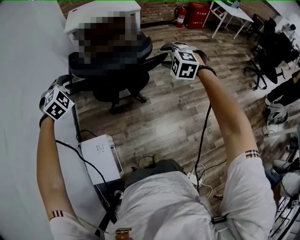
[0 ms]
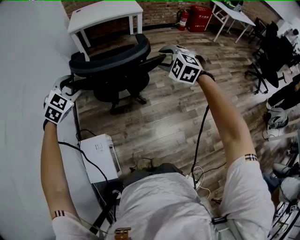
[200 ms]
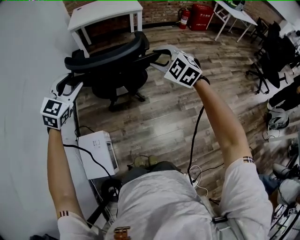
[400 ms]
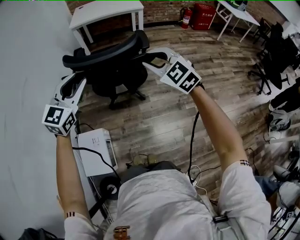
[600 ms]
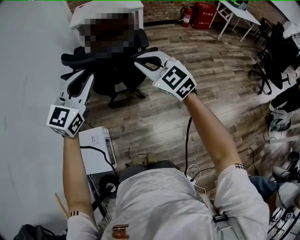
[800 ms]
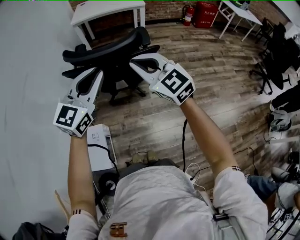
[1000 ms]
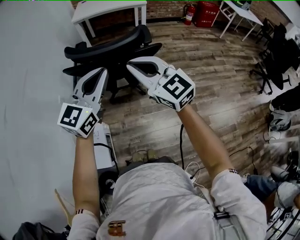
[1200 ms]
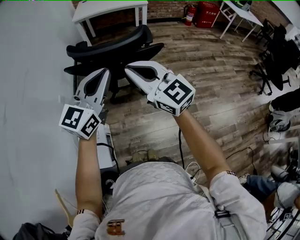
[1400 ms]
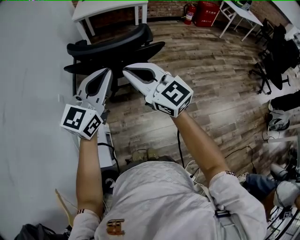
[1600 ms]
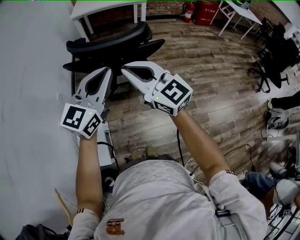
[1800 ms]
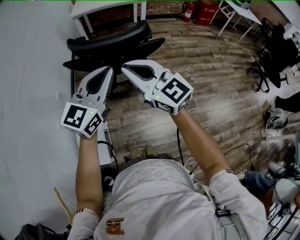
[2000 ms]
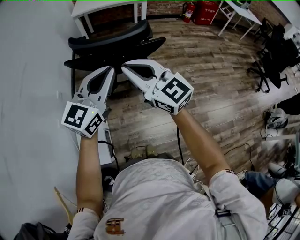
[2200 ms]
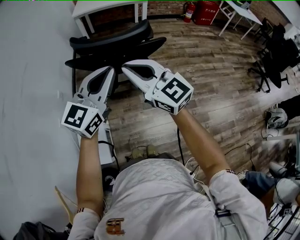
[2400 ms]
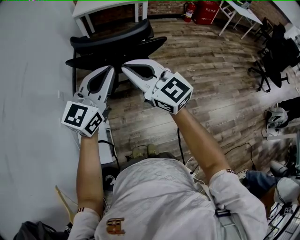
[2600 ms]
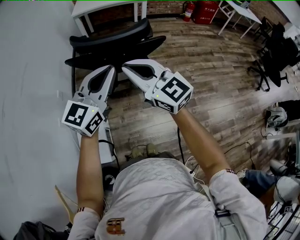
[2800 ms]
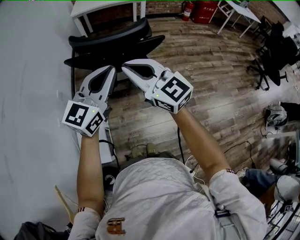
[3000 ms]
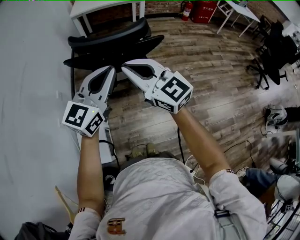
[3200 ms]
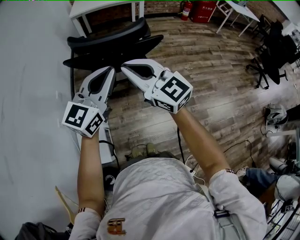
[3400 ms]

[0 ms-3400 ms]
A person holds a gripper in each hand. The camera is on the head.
0 ms to 1600 ms: The right gripper goes roughly 25 cm backward, to the left and upward, angles its fingers upward, by roughly 50 degrees, and closes. The left gripper shifts about 30 cm to the right, backward and upward, points its fingers roughly 50 degrees further upward, and closes up.
1600 ms to 3400 ms: The grippers make only small movements.

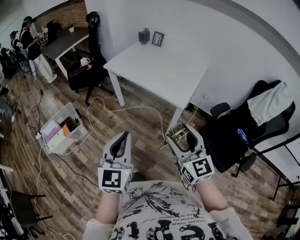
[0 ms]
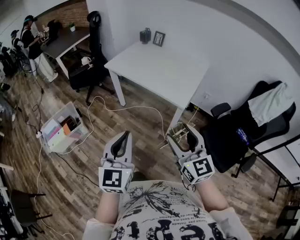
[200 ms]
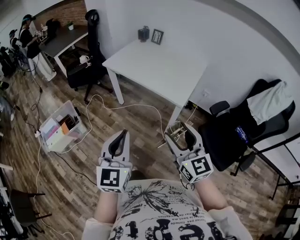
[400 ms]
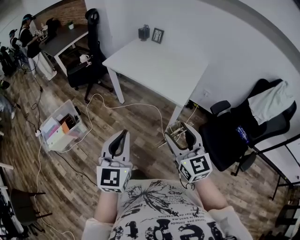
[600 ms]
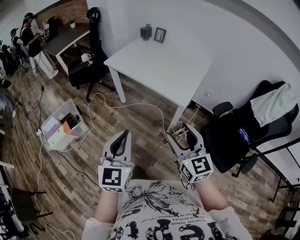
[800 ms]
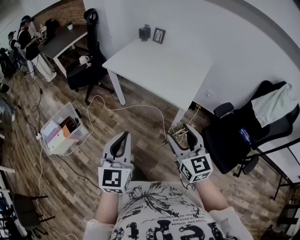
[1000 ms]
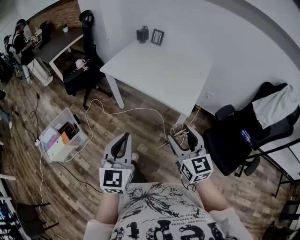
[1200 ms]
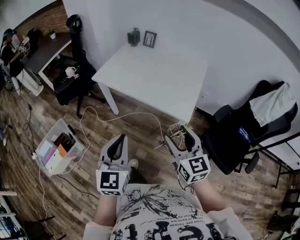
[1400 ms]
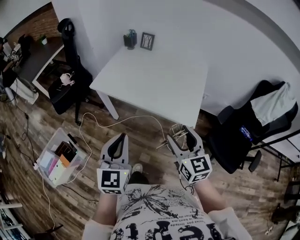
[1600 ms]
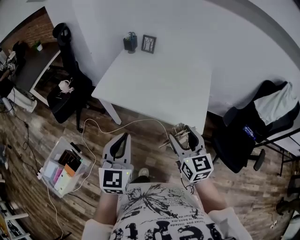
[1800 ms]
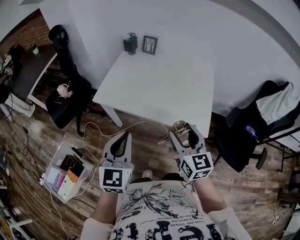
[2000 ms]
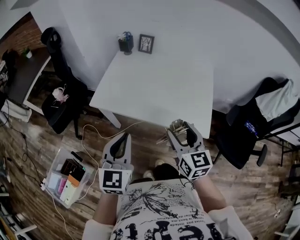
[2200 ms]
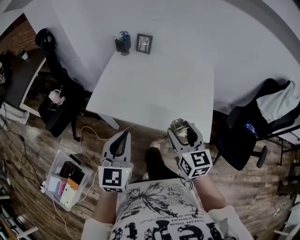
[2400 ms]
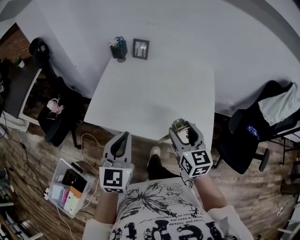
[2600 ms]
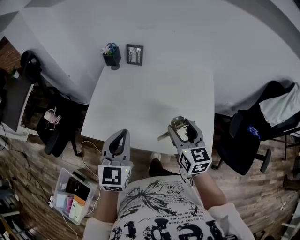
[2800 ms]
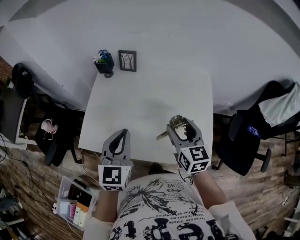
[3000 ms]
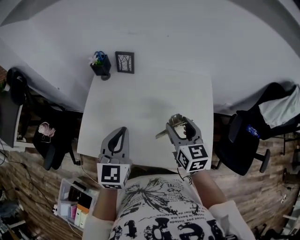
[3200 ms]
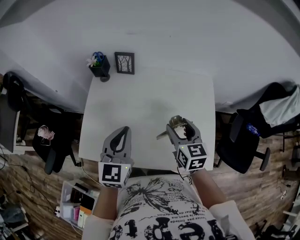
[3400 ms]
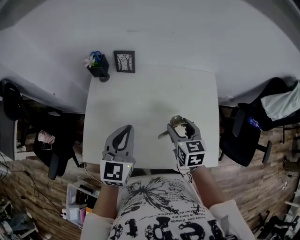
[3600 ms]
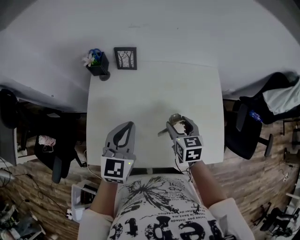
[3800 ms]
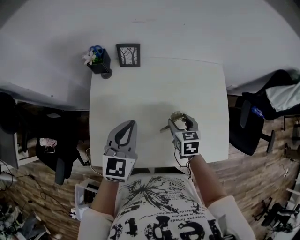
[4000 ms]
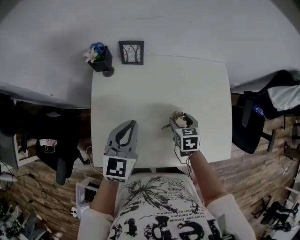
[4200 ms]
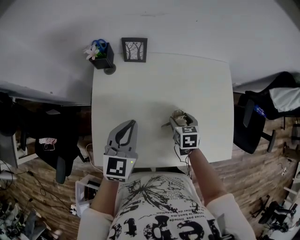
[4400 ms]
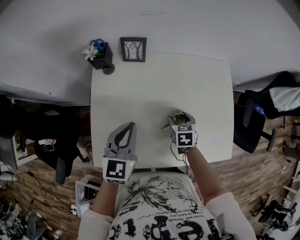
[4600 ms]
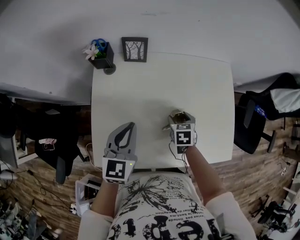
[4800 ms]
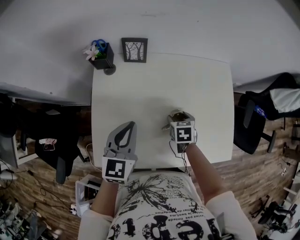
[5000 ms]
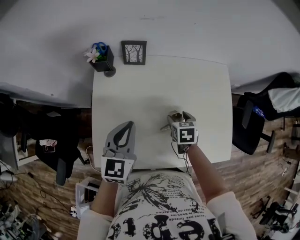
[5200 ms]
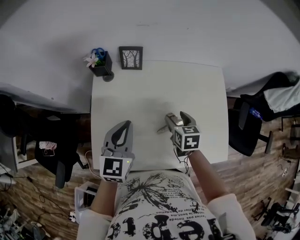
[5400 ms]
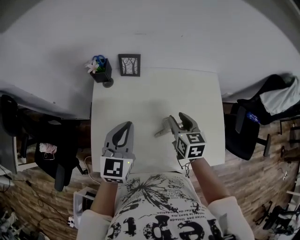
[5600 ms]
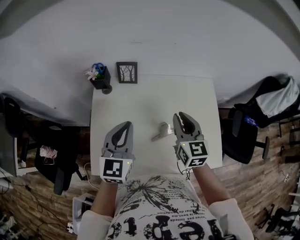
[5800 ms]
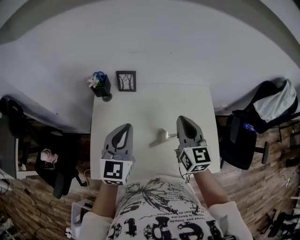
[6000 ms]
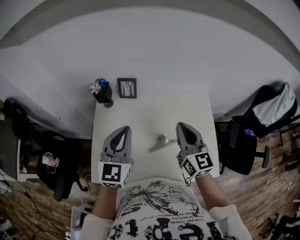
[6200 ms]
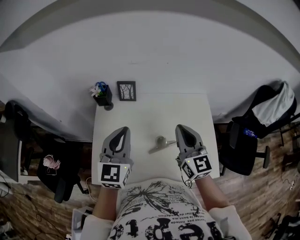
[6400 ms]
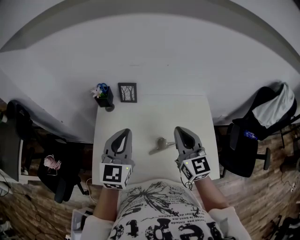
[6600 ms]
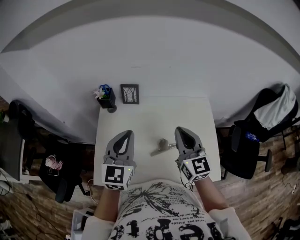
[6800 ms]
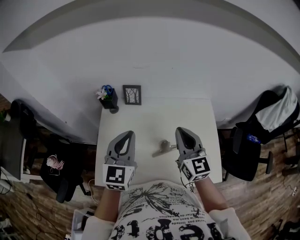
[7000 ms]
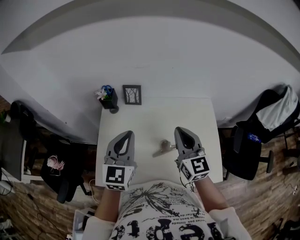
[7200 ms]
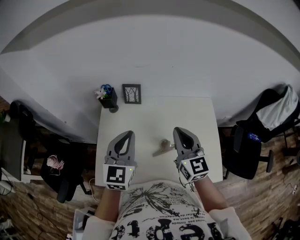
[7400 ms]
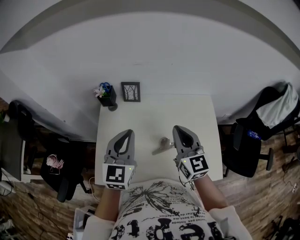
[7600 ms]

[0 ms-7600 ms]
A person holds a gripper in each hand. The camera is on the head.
0 ms to 1600 ms: Both grippers travel together forward, approximately 25 cm. The right gripper changes its angle by roughly 20 degrees.
1600 ms to 3000 ms: The grippers both shift forward by some 40 cm. The right gripper rotates approximately 20 degrees.
3000 ms to 4600 ms: The right gripper heads downward, forward and to the left, covering about 25 cm, and angles its fingers downward, by about 40 degrees; the left gripper travels forward, to the left and downward by approximately 20 cm.
4600 ms to 6000 ms: The left gripper moves upward, some 10 cm; the right gripper heads upward, covering approximately 30 cm, tilts its fingers some 50 degrees upward, and closes up.
6000 ms to 7600 ms: There are only small adjustments of the grippers.

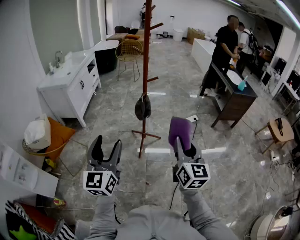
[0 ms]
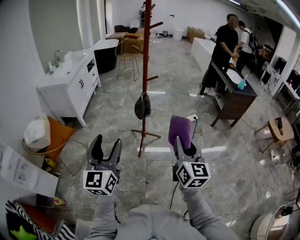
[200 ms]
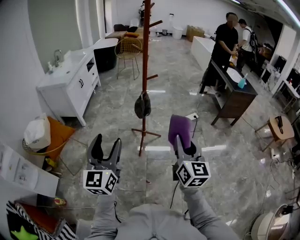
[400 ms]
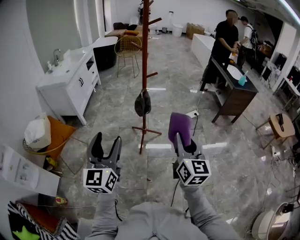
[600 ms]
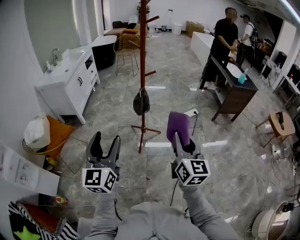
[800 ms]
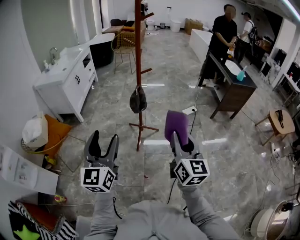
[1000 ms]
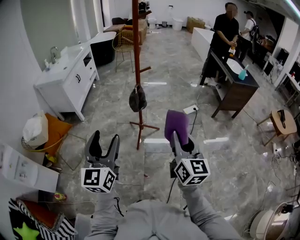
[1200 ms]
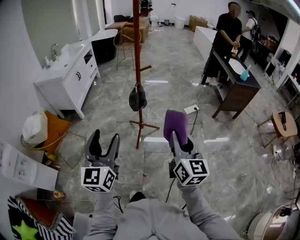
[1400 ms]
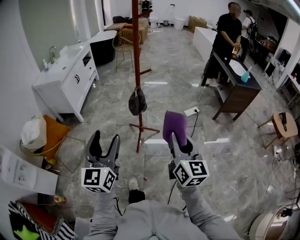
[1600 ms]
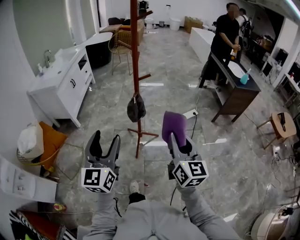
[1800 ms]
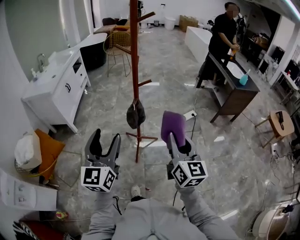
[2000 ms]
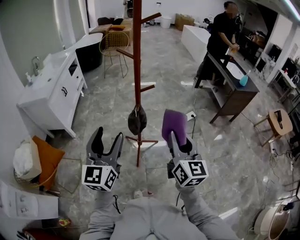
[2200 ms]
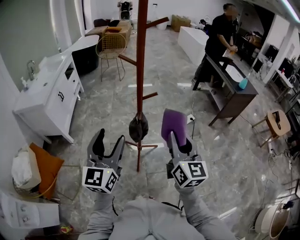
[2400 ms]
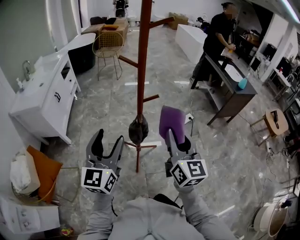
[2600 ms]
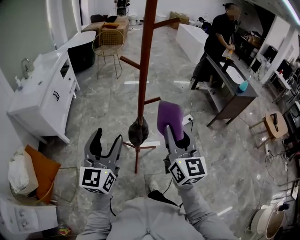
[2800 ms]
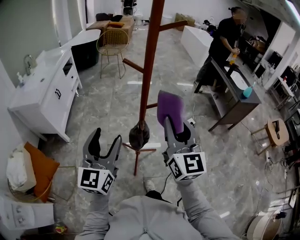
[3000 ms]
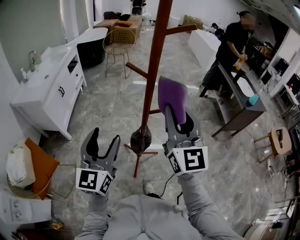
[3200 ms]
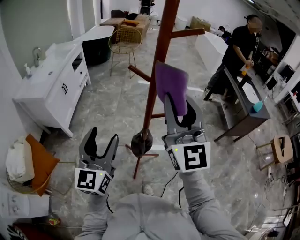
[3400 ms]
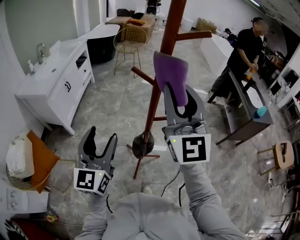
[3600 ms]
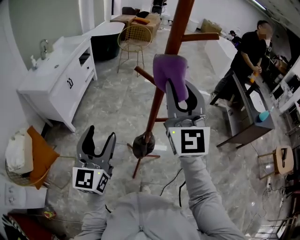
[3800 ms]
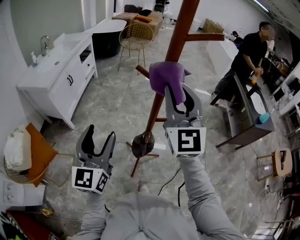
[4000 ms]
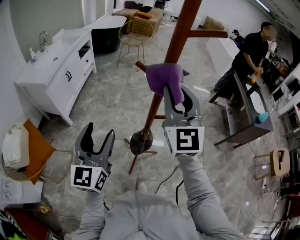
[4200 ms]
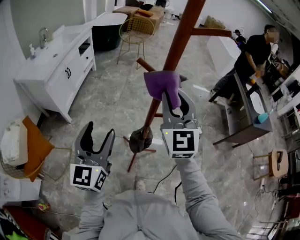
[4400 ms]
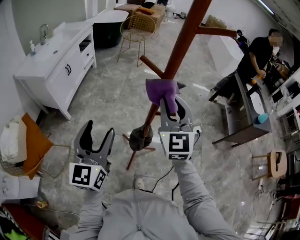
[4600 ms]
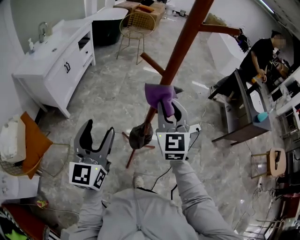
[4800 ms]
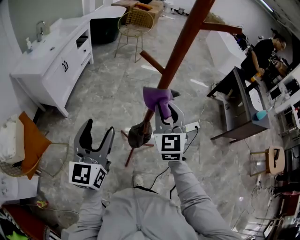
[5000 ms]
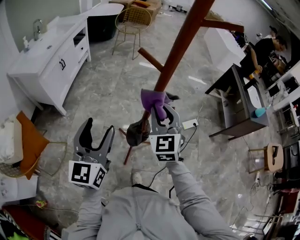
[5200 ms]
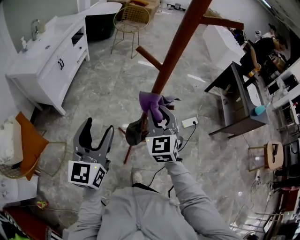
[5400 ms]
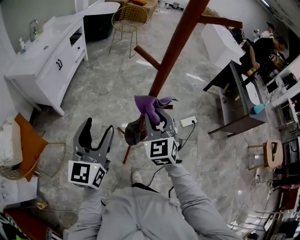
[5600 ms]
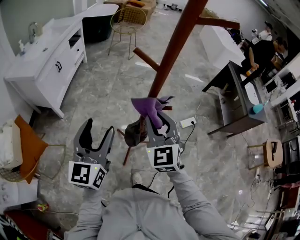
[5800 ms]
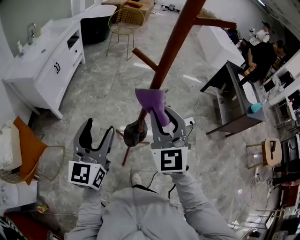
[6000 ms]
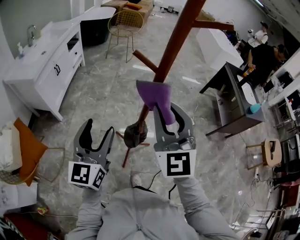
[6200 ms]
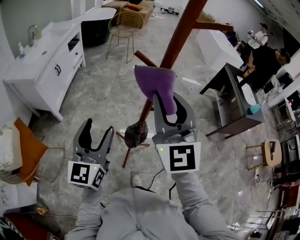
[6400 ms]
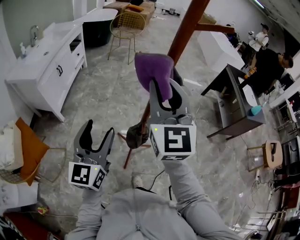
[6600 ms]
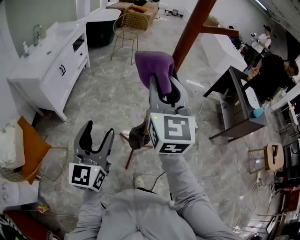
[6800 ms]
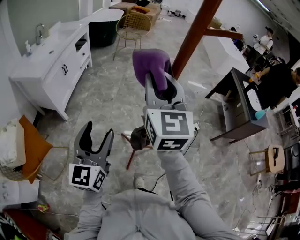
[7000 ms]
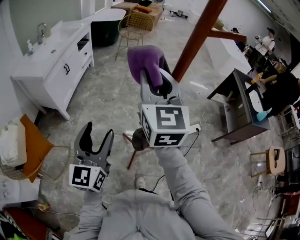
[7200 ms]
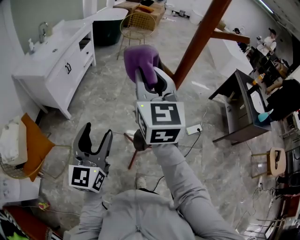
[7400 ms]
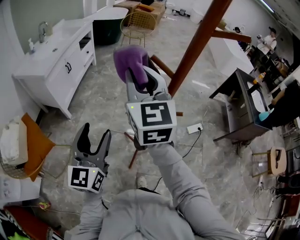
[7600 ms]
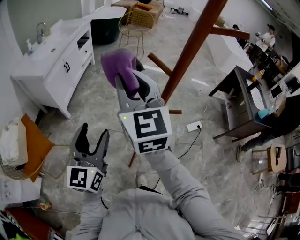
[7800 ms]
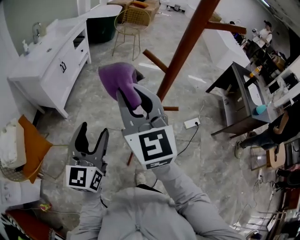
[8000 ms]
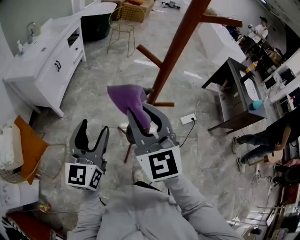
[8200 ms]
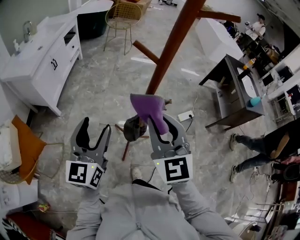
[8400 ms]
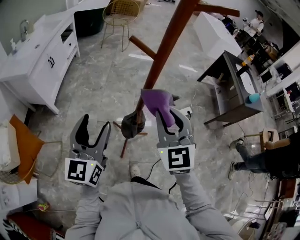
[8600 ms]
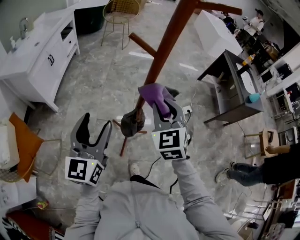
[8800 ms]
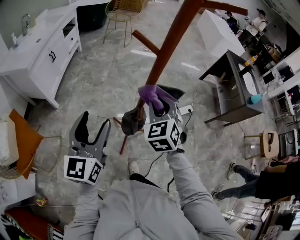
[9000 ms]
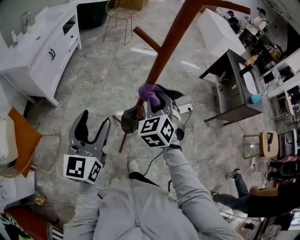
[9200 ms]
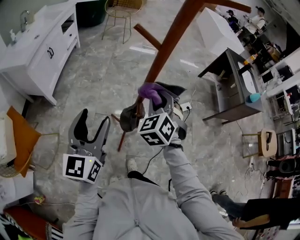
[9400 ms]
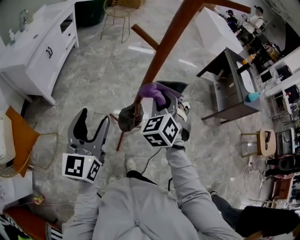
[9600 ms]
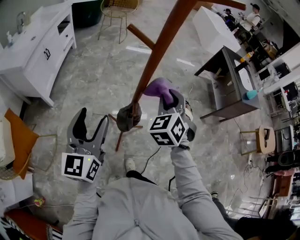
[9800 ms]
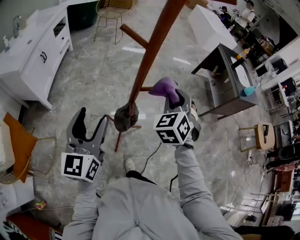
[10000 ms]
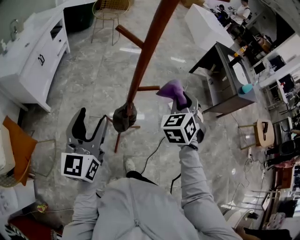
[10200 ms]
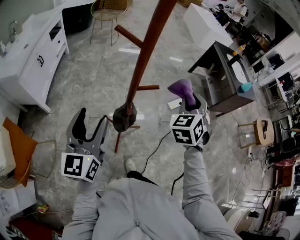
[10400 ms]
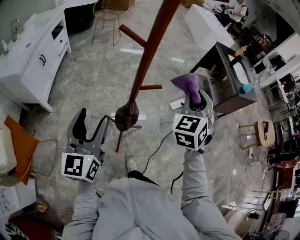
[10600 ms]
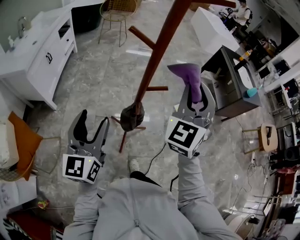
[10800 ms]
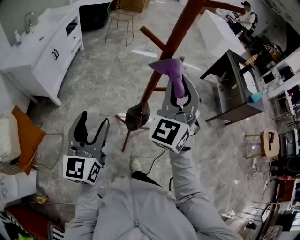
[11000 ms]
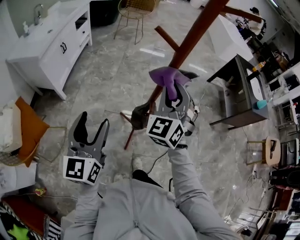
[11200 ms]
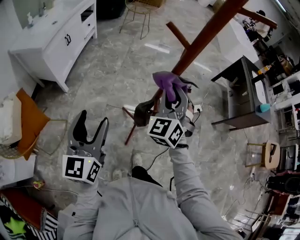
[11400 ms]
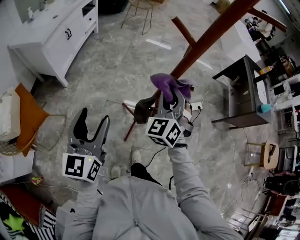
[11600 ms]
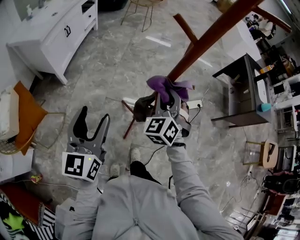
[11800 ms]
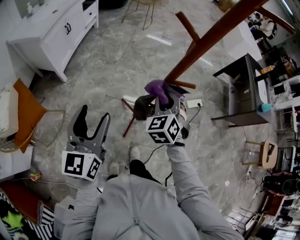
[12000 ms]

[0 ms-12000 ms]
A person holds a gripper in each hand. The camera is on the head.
0 ms to 1600 ms: The right gripper shifts roughly 5 cm forward, while the left gripper is displaced forward and to the right by roughly 10 cm.
1600 ms to 3000 ms: The left gripper is displaced forward by some 30 cm, while the right gripper travels forward and to the left by some 30 cm.
3000 ms to 4400 ms: The left gripper is displaced forward by some 5 cm. The right gripper shifts roughly 15 cm forward, and changes its angle by about 20 degrees.
4400 ms to 6000 ms: The right gripper shifts some 10 cm downward and backward.
6000 ms to 7600 ms: The left gripper heads to the left, covering roughly 5 cm, while the right gripper is displaced to the left, upward and forward by roughly 15 cm, and rotates some 20 degrees.
7600 ms to 9000 ms: The left gripper goes approximately 5 cm to the right; the right gripper travels downward and to the right by roughly 25 cm, and swivels roughly 40 degrees.
9000 ms to 10400 ms: The right gripper goes approximately 15 cm to the right, and swivels roughly 30 degrees.
10400 ms to 12000 ms: The left gripper is displaced to the left by approximately 5 cm. The right gripper goes some 25 cm to the left and downward, and swivels approximately 30 degrees.
